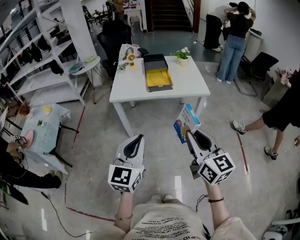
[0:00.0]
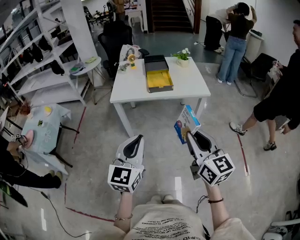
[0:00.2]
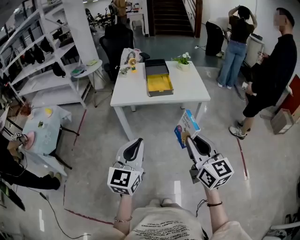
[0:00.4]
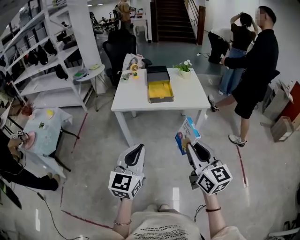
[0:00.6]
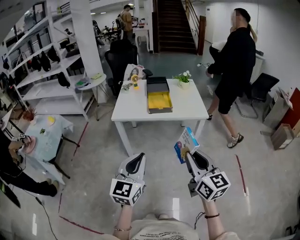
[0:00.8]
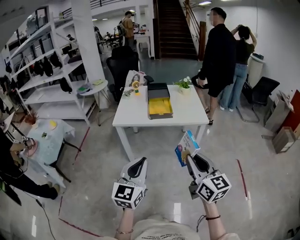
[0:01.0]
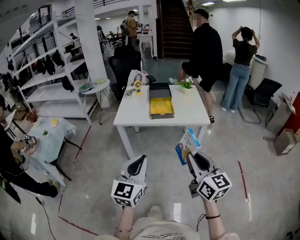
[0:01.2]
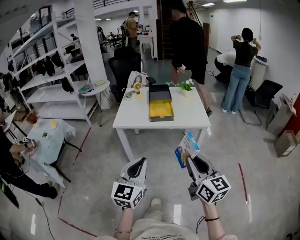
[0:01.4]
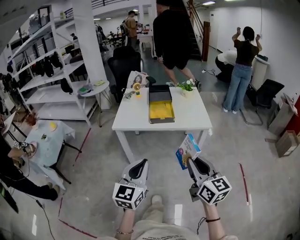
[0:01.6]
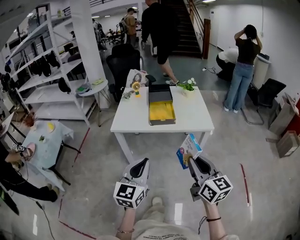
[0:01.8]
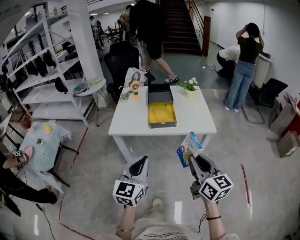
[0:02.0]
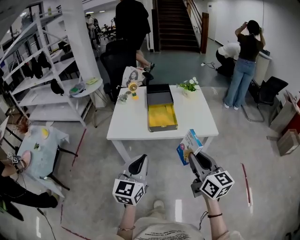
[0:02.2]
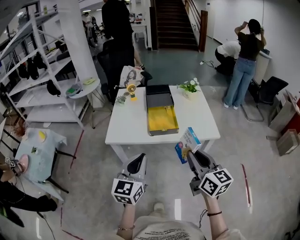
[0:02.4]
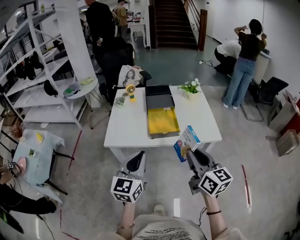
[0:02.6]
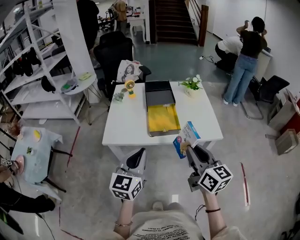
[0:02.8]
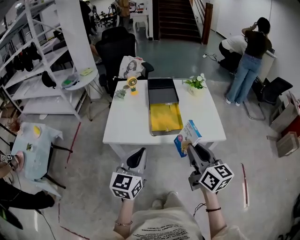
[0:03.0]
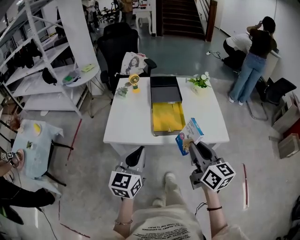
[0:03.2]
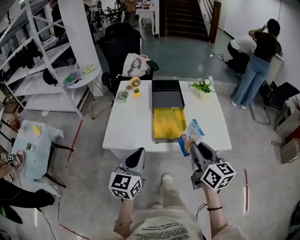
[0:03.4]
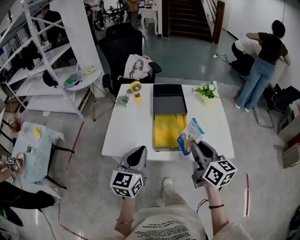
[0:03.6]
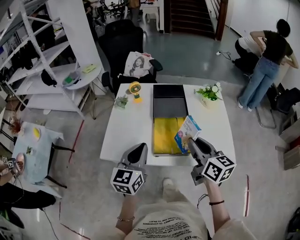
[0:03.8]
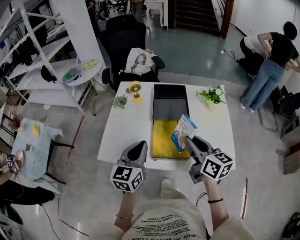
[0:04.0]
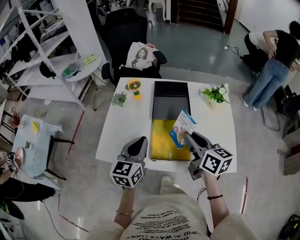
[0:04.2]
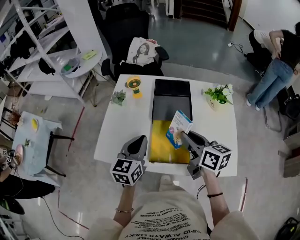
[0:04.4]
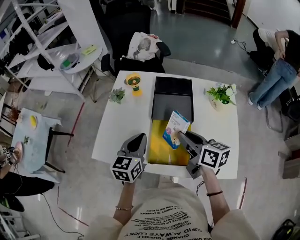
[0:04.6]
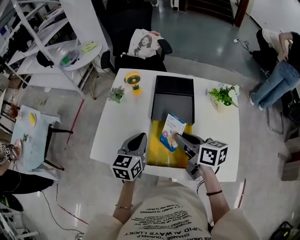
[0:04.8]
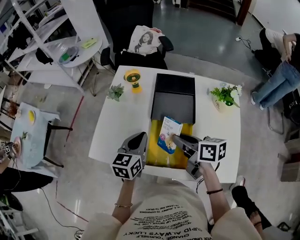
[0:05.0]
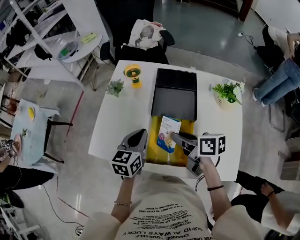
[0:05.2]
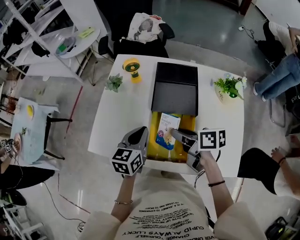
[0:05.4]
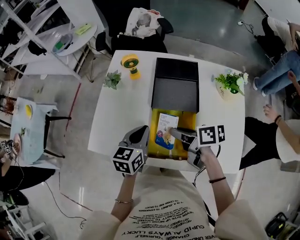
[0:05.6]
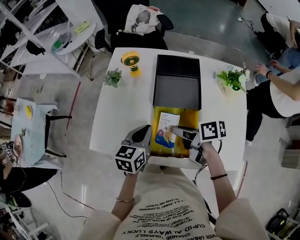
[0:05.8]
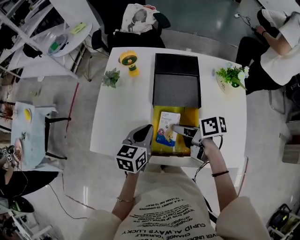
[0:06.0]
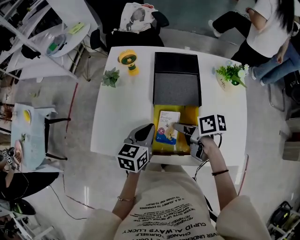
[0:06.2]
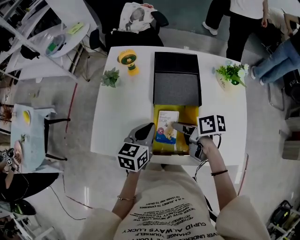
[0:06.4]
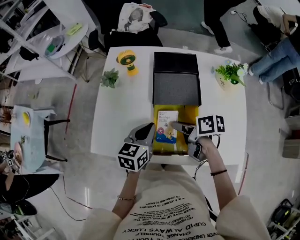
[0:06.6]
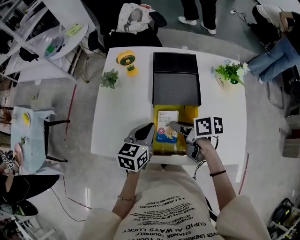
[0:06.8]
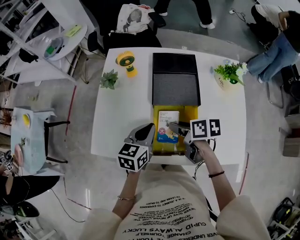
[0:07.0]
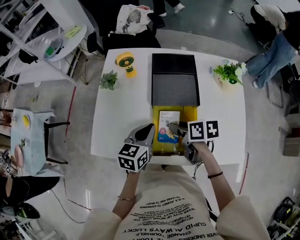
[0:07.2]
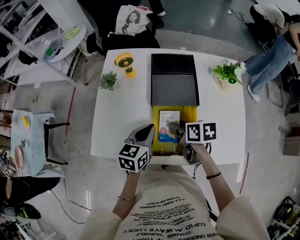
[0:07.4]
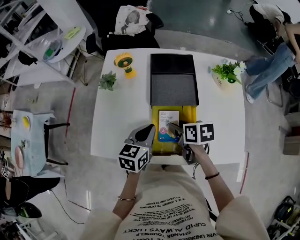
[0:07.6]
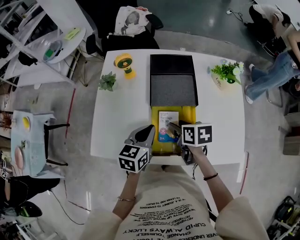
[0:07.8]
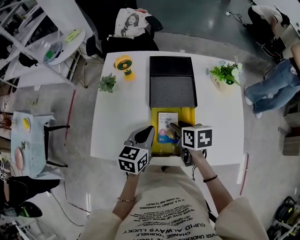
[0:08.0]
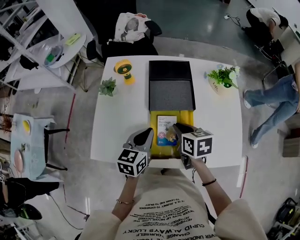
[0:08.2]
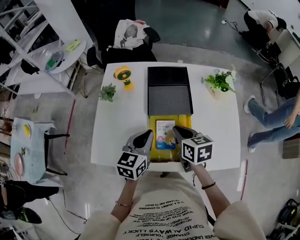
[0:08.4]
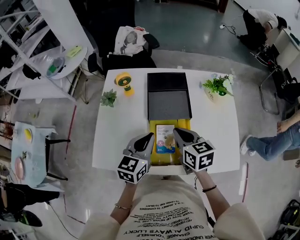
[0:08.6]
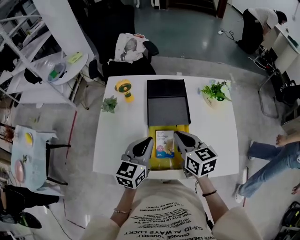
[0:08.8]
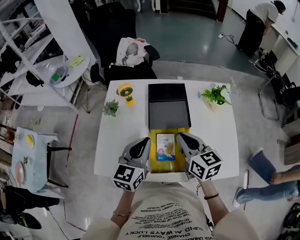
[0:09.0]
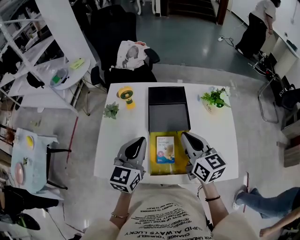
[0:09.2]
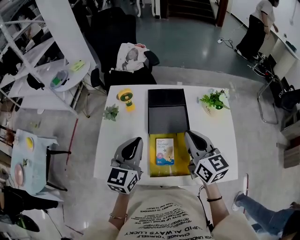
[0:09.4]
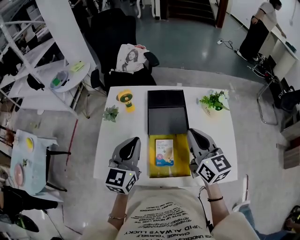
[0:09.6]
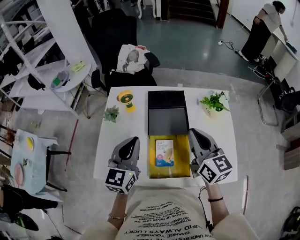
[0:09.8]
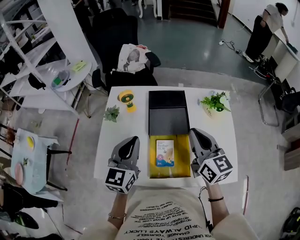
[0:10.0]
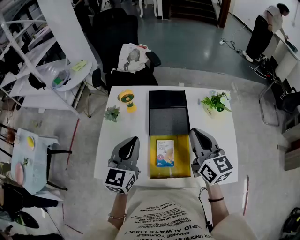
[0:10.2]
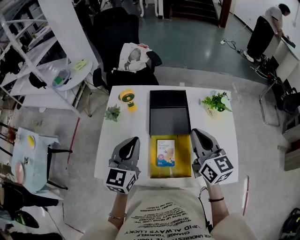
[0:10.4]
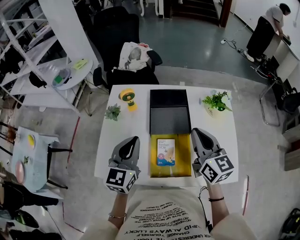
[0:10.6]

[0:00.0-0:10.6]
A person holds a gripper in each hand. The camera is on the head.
0.0 to 1.6 s: The right gripper moves forward, about 5 cm. Meanwhile the left gripper shifts by roughly 5 cm.
1.6 to 3.0 s: Both grippers travel together forward, approximately 25 cm.
3.0 to 4.6 s: Both grippers move forward, some 30 cm. The right gripper swivels approximately 30 degrees.
4.6 to 6.0 s: The two grippers go approximately 10 cm downward. The right gripper turns by about 40 degrees.
6.0 to 7.6 s: The right gripper changes its angle by some 30 degrees, and opens its fingers.
7.6 to 9.0 s: The two grippers go about 15 cm upward. The left gripper turns by roughly 20 degrees. Meanwhile the right gripper tilts its fingers roughly 30 degrees upward, and closes.
9.0 to 10.6 s: The left gripper ends up about 5 cm from where it was. Meanwhile the right gripper is displaced upward by approximately 5 cm.

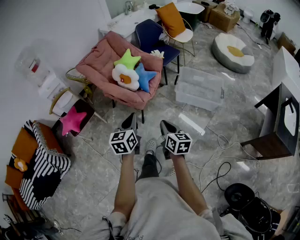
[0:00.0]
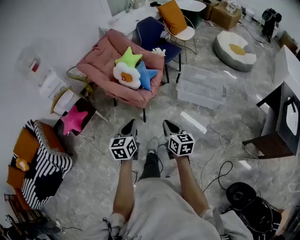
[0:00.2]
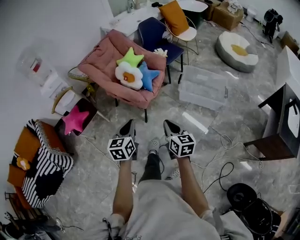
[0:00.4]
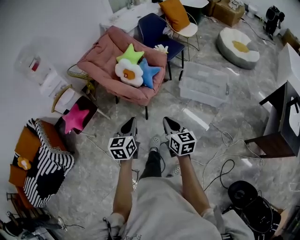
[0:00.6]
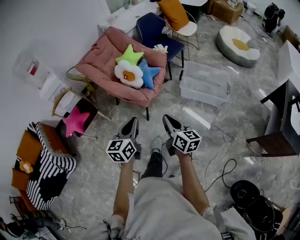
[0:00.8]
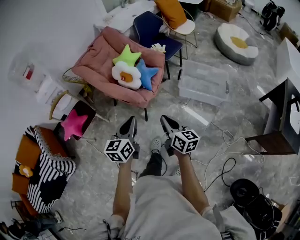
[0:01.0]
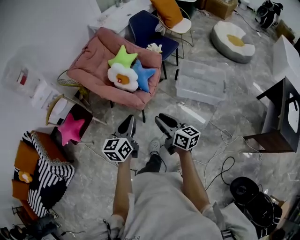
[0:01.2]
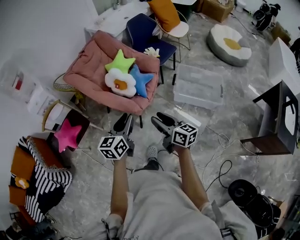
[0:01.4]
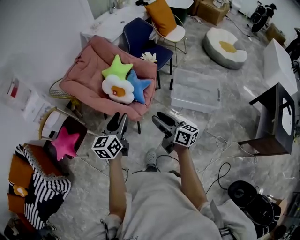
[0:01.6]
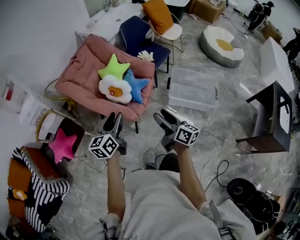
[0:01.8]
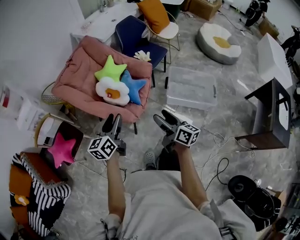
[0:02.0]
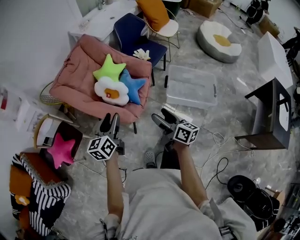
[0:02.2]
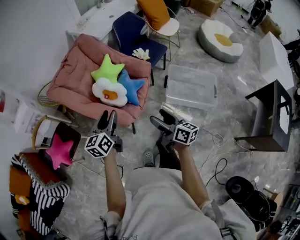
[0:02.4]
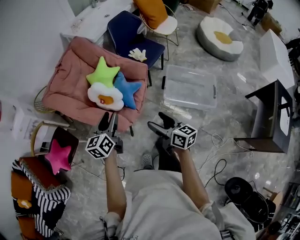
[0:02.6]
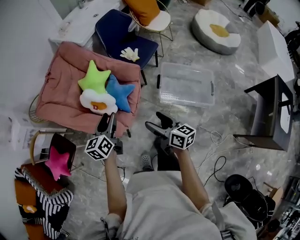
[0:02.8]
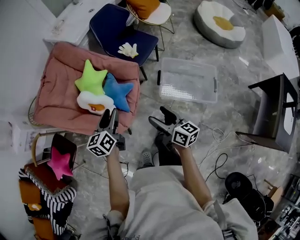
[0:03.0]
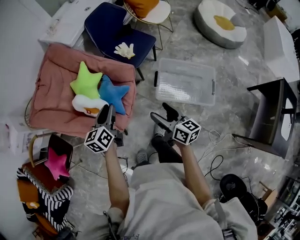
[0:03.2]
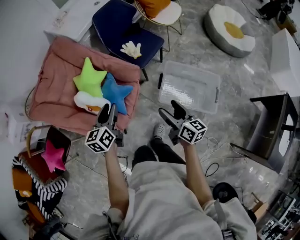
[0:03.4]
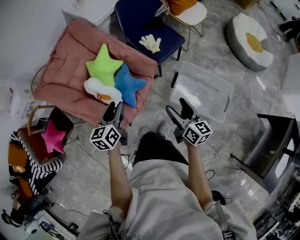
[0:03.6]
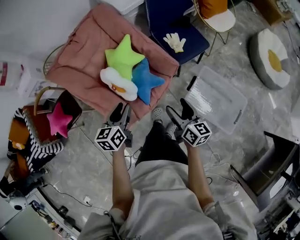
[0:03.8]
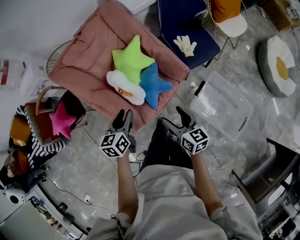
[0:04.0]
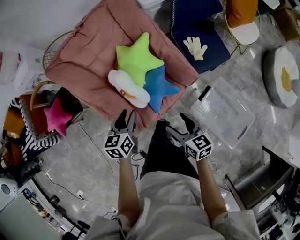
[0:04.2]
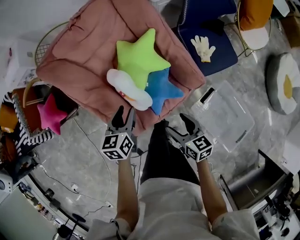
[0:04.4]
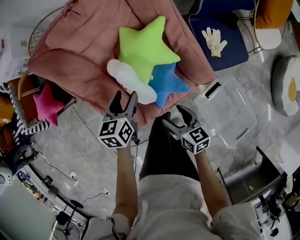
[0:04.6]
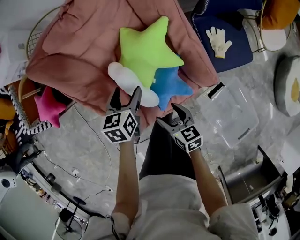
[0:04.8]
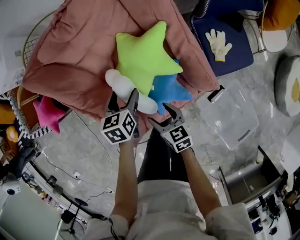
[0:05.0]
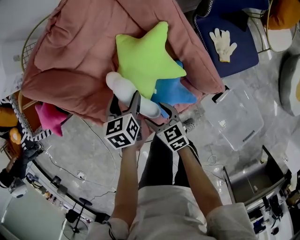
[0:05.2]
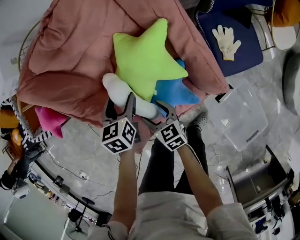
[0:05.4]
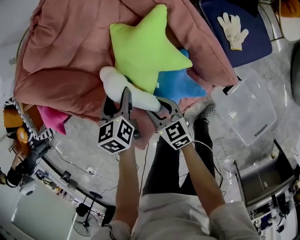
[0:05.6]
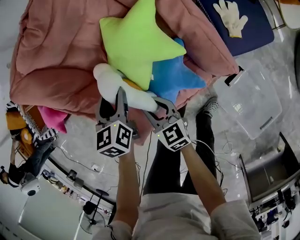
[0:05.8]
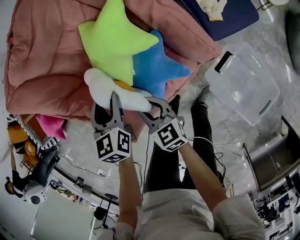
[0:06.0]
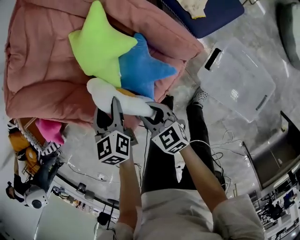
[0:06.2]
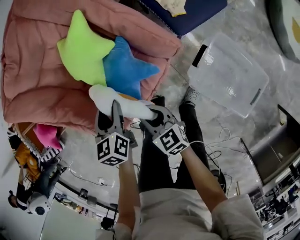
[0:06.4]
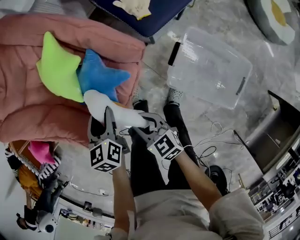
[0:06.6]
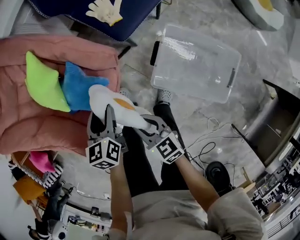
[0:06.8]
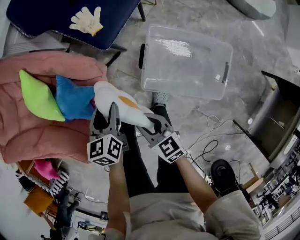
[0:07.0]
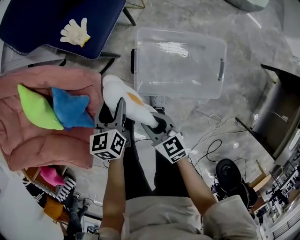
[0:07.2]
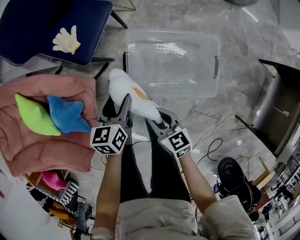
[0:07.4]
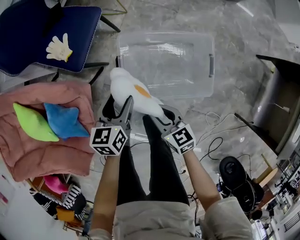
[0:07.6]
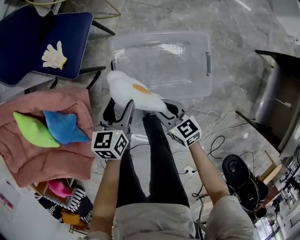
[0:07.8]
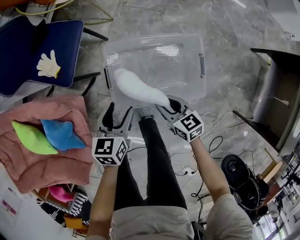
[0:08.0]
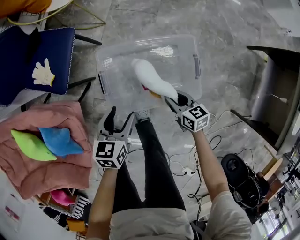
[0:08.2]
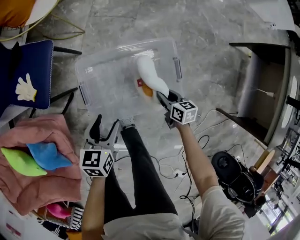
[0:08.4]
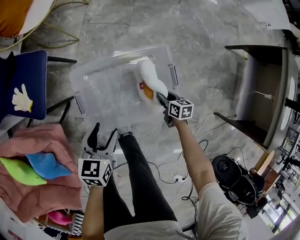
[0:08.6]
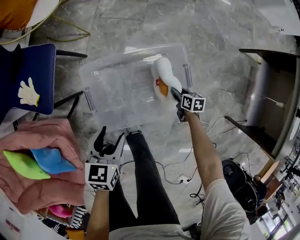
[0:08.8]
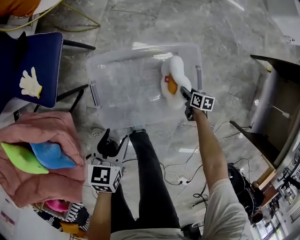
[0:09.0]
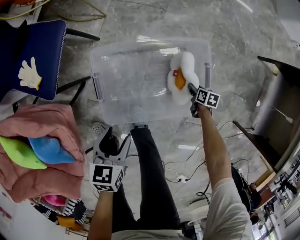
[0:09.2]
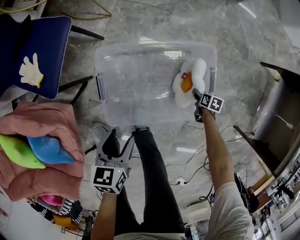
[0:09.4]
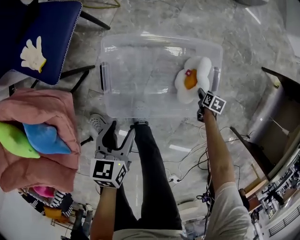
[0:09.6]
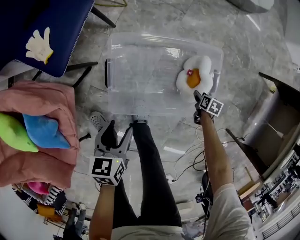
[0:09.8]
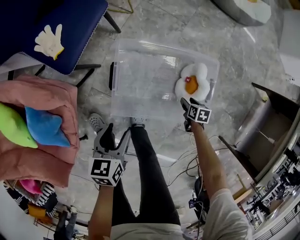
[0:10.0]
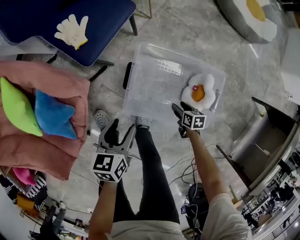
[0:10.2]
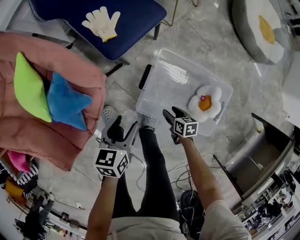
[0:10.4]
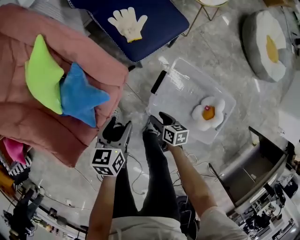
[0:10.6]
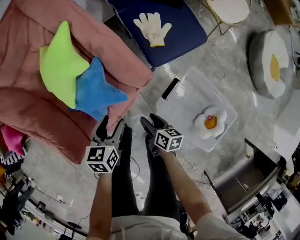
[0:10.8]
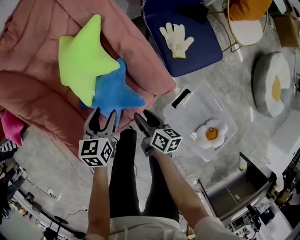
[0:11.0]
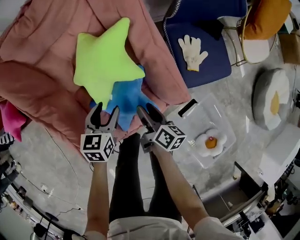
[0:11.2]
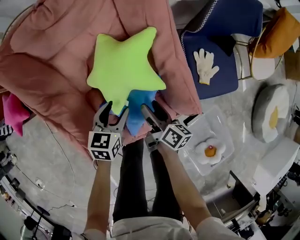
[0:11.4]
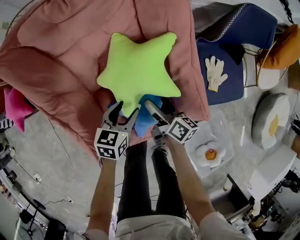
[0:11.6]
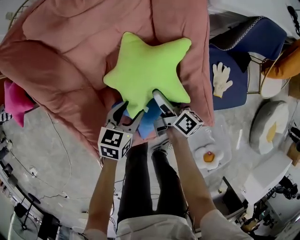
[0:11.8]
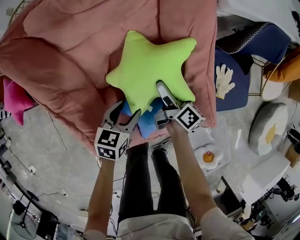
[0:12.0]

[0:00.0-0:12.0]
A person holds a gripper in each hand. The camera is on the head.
0.0 to 1.6 s: Both grippers travel together forward, approximately 20 cm. The right gripper turns by about 30 degrees; the left gripper opens up.
1.6 to 3.0 s: Both grippers move forward, to the right and downward, approximately 30 cm.
3.0 to 4.4 s: The right gripper shifts by approximately 30 cm, and rotates about 50 degrees. Meanwhile the left gripper moves about 25 cm, and rotates some 30 degrees.
4.4 to 6.0 s: The left gripper travels downward and forward by some 10 cm, while the right gripper travels downward, forward and to the left by some 20 cm, and closes up.
6.0 to 7.6 s: Both grippers are carried about 60 cm. The left gripper rotates approximately 60 degrees, while the right gripper rotates approximately 40 degrees.
7.6 to 9.0 s: The left gripper moves to the right and downward, about 10 cm, and changes its angle by some 20 degrees; the right gripper shifts roughly 50 cm to the right and downward, and turns by about 50 degrees.
9.0 to 10.4 s: The left gripper changes place by about 20 cm, and rotates some 40 degrees; the right gripper changes place by about 40 cm, and changes its angle by roughly 40 degrees.
10.4 to 12.0 s: The pair of grippers is taken to the left and forward, roughly 60 cm. The right gripper tilts its fingers approximately 40 degrees upward, and opens up, while the left gripper turns by about 30 degrees.

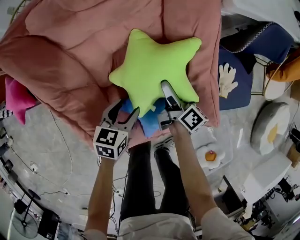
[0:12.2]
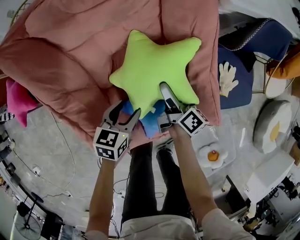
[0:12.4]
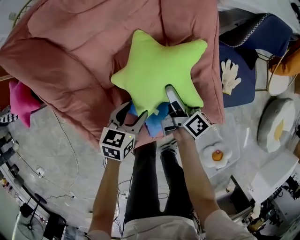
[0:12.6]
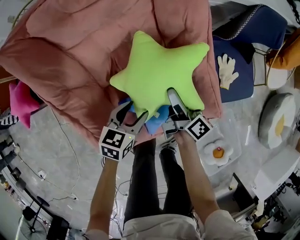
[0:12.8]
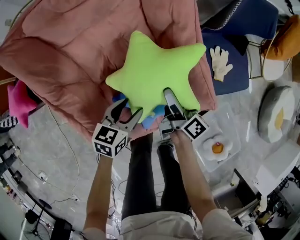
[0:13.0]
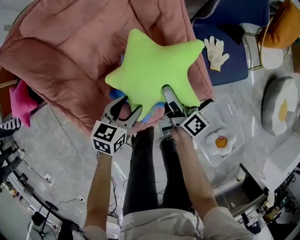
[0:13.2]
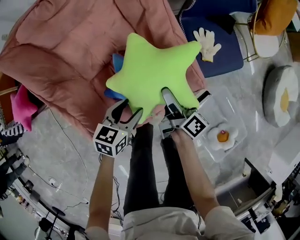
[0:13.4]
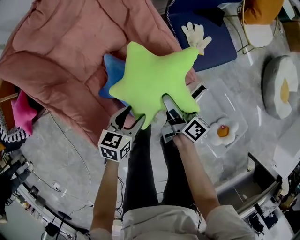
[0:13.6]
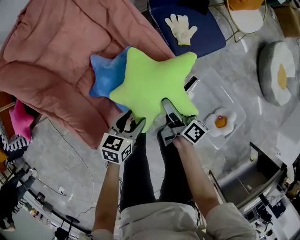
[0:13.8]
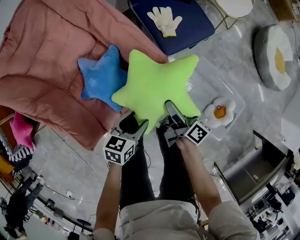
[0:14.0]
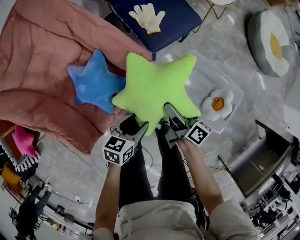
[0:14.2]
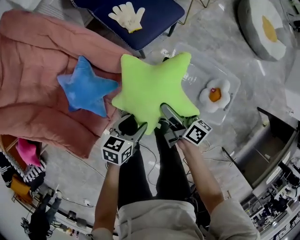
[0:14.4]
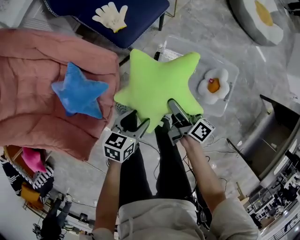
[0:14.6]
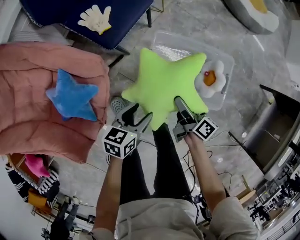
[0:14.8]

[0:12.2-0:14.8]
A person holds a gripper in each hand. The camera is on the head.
12.2 to 13.4 s: The left gripper goes some 15 cm to the right and backward. Meanwhile the right gripper goes some 20 cm to the right, backward and upward.
13.4 to 14.8 s: The right gripper shifts by about 50 cm, and turns by some 30 degrees. Meanwhile the left gripper changes place by approximately 40 cm, and turns by some 40 degrees.
